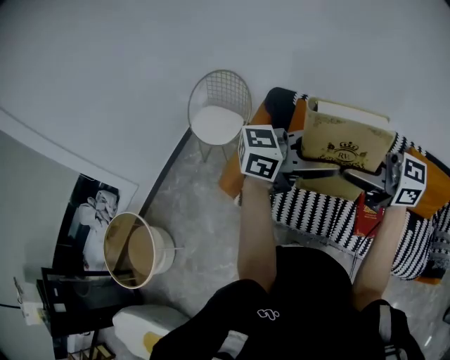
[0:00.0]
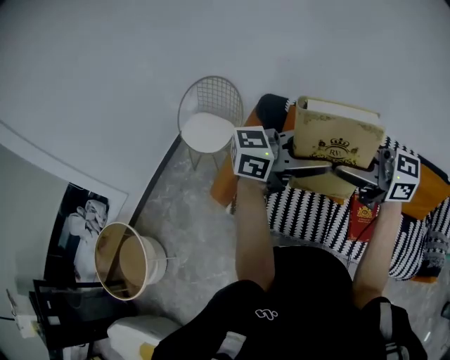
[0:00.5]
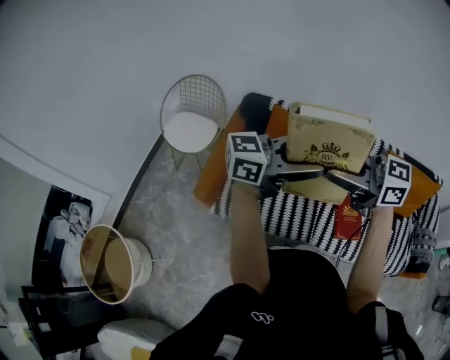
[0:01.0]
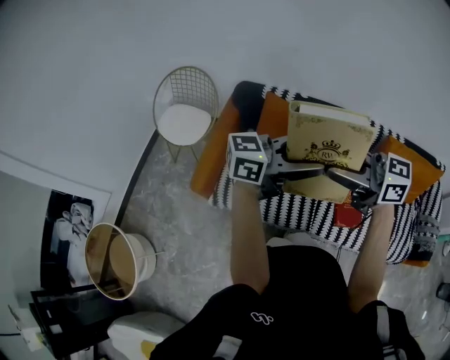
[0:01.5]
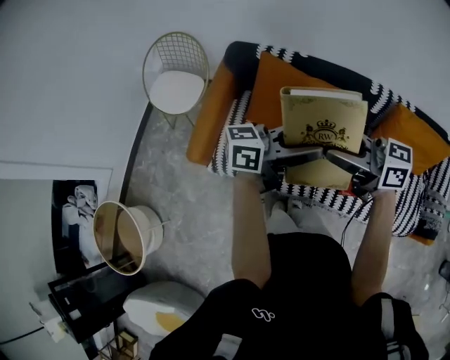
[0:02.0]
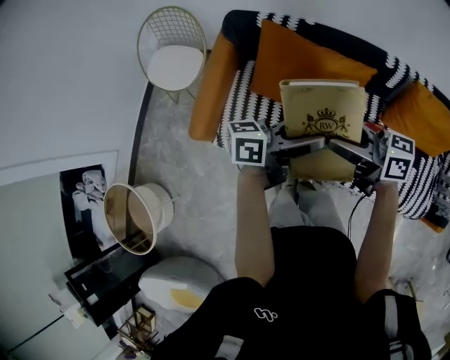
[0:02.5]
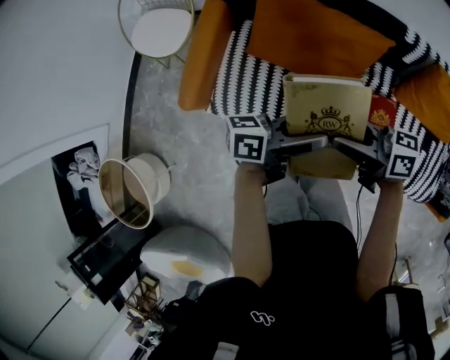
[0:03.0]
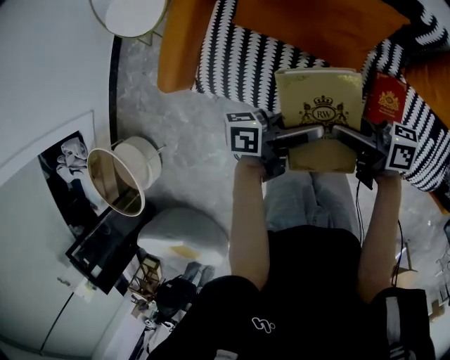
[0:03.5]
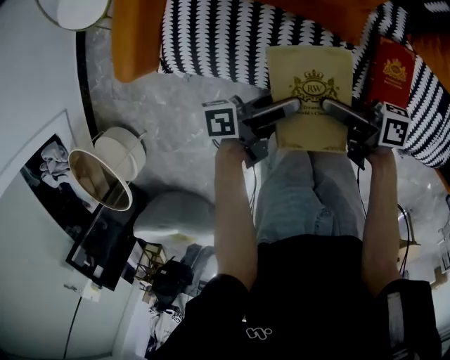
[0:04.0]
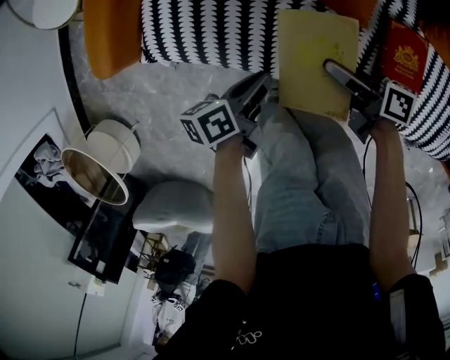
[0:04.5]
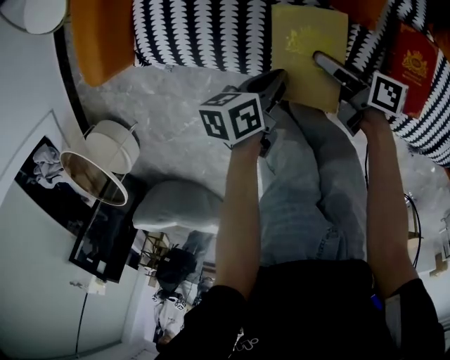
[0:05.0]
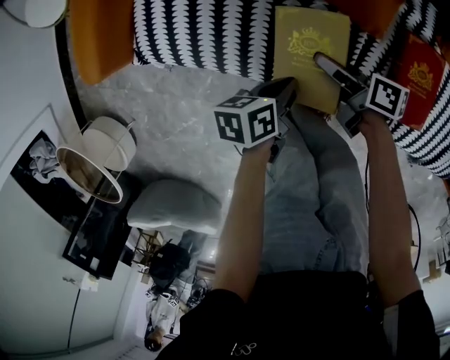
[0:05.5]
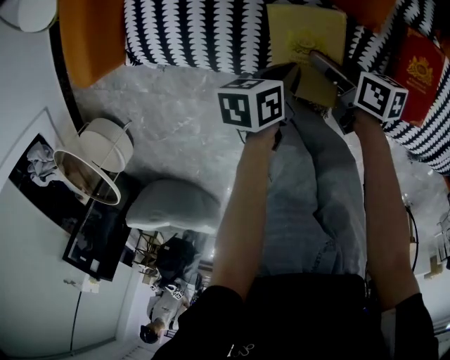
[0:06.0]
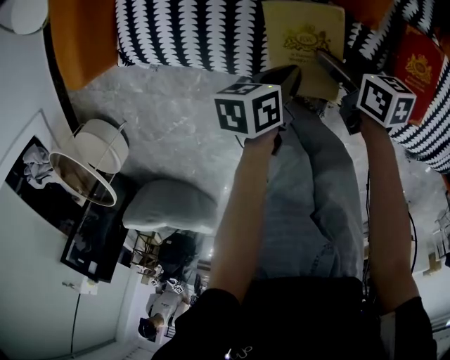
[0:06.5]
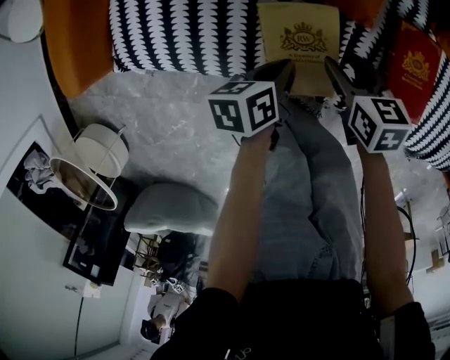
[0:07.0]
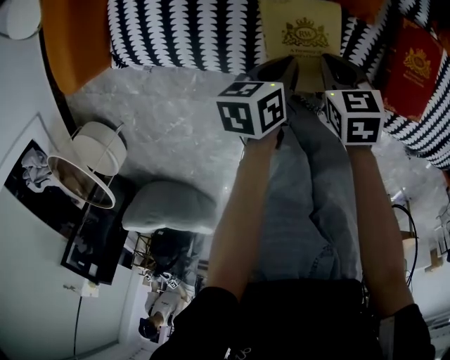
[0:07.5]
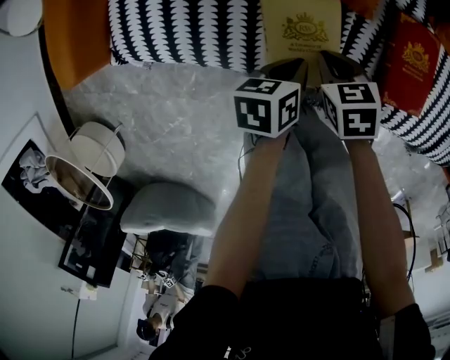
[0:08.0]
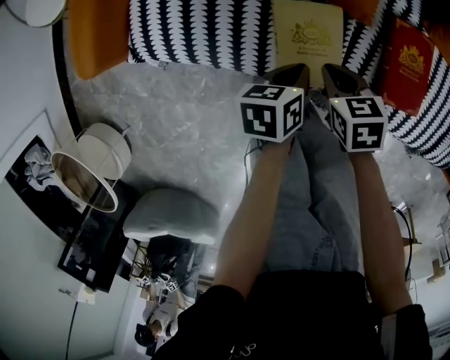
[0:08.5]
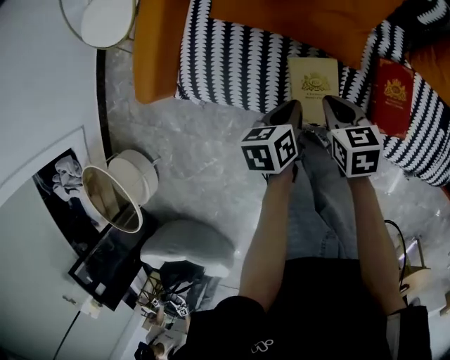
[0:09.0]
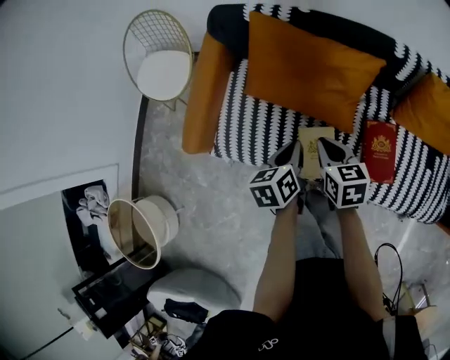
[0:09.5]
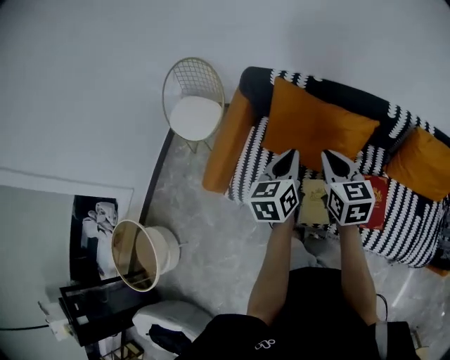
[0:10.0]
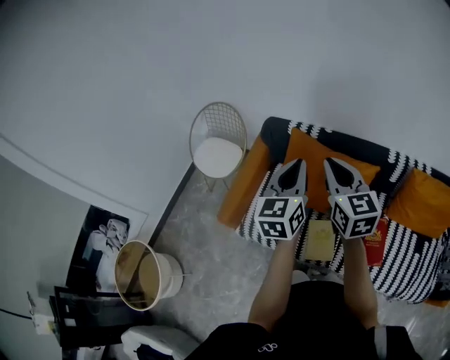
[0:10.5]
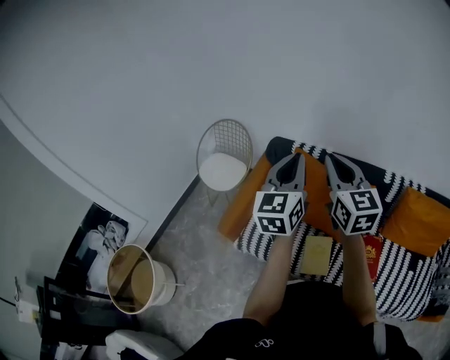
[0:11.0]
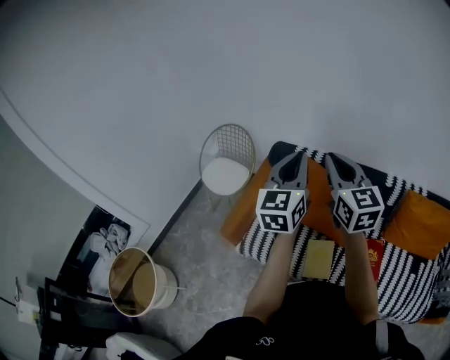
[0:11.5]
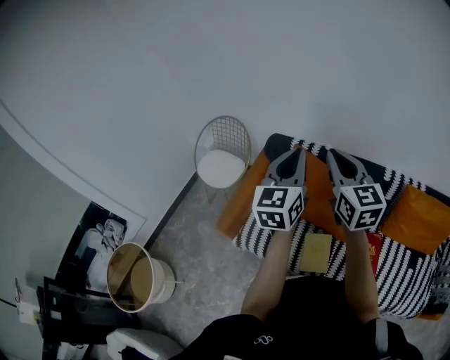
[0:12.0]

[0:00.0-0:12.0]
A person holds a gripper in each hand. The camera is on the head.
0:00.0 to 0:02.0: The two grippers go some 15 cm downward. The right gripper turns by some 20 degrees. The left gripper rotates roughly 30 degrees.
0:02.0 to 0:04.0: The grippers both shift downward by approximately 35 cm. The right gripper rolls clockwise, seen from behind, by approximately 50 degrees. Meanwhile the left gripper twists roughly 50 degrees counterclockwise, seen from behind.
0:04.0 to 0:06.0: The grippers both shift downward by about 20 cm. The left gripper angles its fingers downward, by roughly 40 degrees, and closes; the right gripper swivels some 30 degrees.
0:06.0 to 0:08.0: The right gripper swivels approximately 50 degrees, and closes up.
0:08.0 to 0:10.0: The grippers both shift upward by about 50 cm. The left gripper turns by approximately 40 degrees, while the right gripper angles its fingers upward, by some 40 degrees.
0:10.0 to 0:12.0: The grippers both shift upward by about 25 cm. The left gripper changes its angle by approximately 30 degrees. The right gripper swivels approximately 30 degrees.

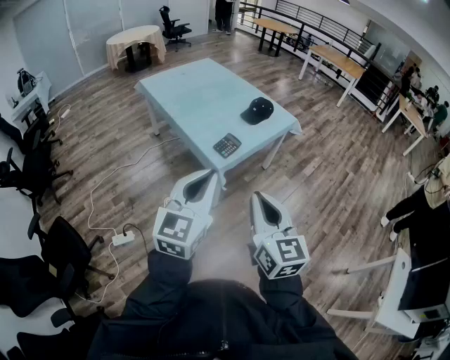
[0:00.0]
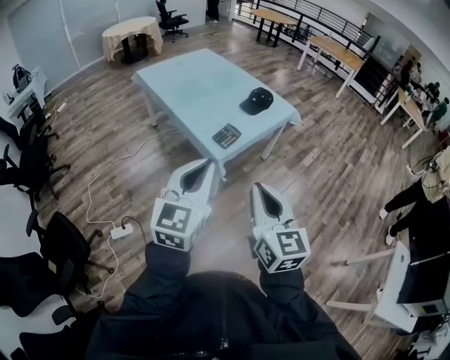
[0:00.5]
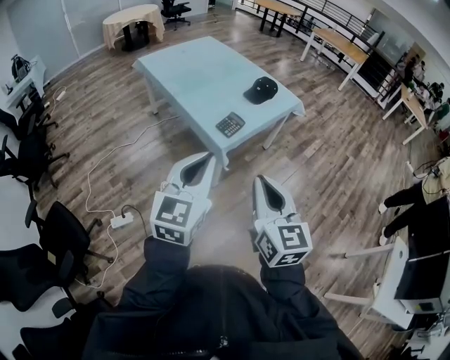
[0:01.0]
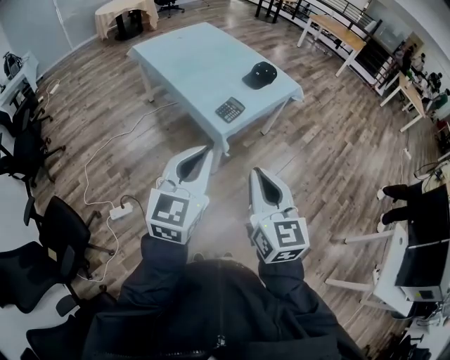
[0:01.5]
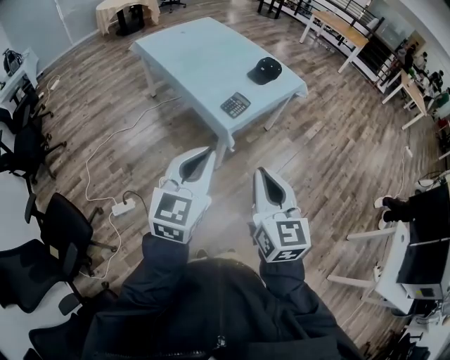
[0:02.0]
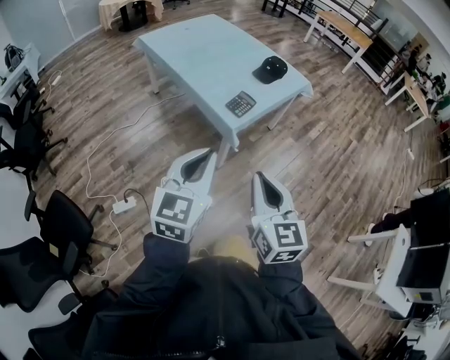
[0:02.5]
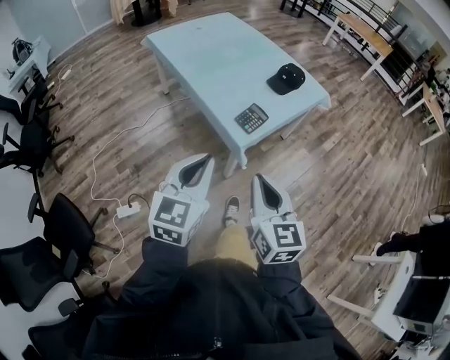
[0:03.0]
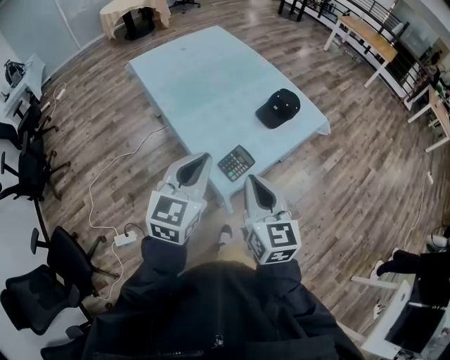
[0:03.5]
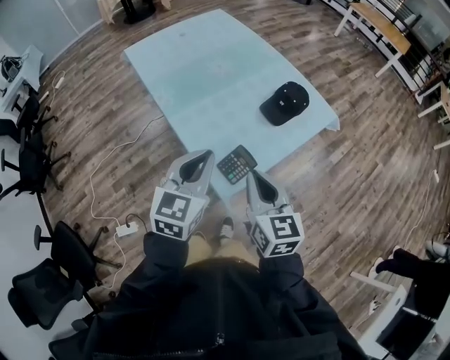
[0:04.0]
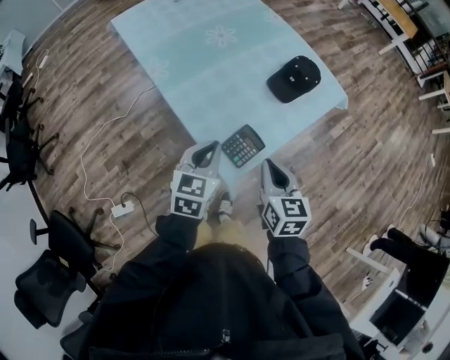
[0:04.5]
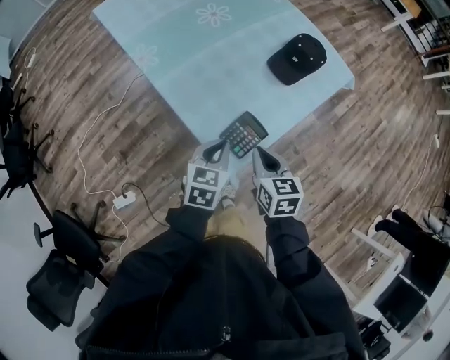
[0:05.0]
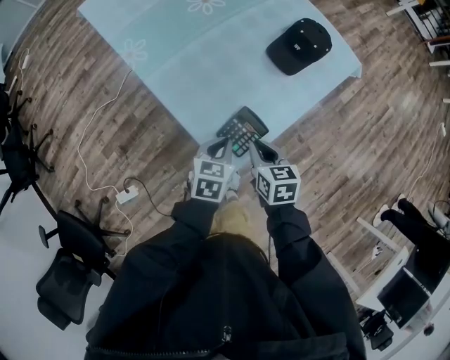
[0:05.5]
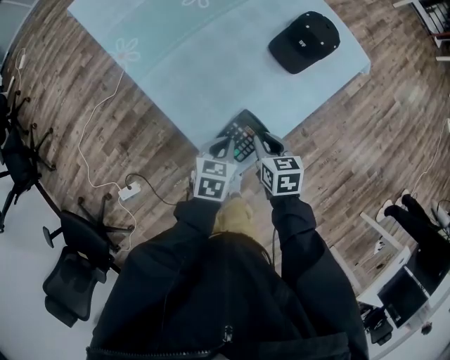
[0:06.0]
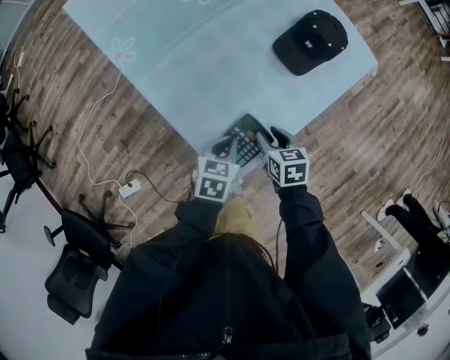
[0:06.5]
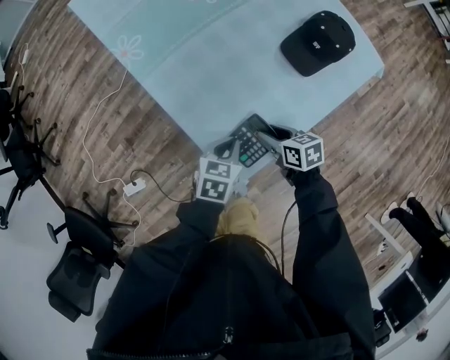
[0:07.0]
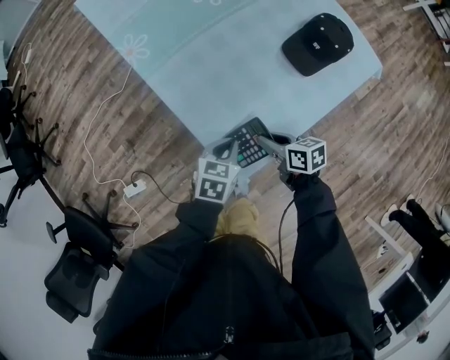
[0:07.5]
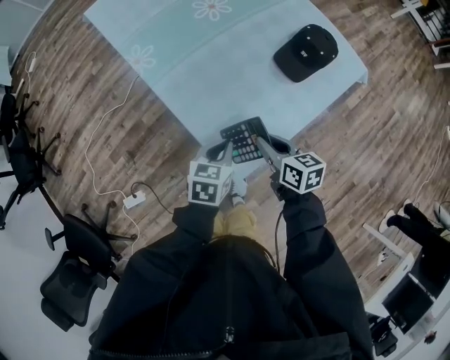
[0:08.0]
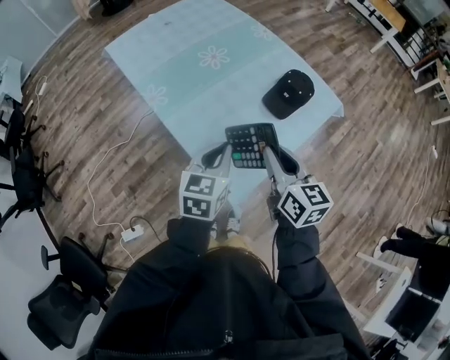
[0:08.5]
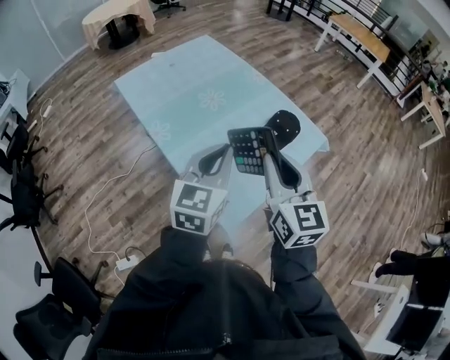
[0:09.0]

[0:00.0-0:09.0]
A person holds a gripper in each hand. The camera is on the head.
0:00.0 to 0:02.0: Both grippers move to the left, some 5 cm.
0:02.0 to 0:04.5: The pair of grippers is taken forward, roughly 50 cm. Both grippers move downward, about 20 cm. The right gripper changes its angle by roughly 20 degrees, while the left gripper changes its angle by roughly 30 degrees.
0:04.5 to 0:07.0: The two grippers go approximately 25 cm downward. The left gripper turns by roughly 30 degrees; the right gripper rotates roughly 40 degrees, and opens.
0:07.0 to 0:09.0: The grippers both shift upward by about 40 cm. The left gripper tips its fingers upward by some 40 degrees. Meanwhile the right gripper tips its fingers upward by about 40 degrees, and closes up.

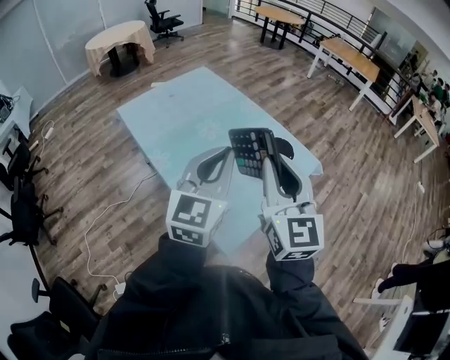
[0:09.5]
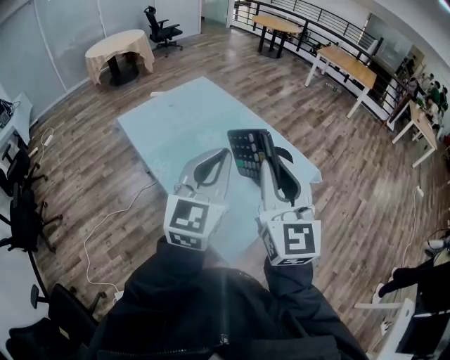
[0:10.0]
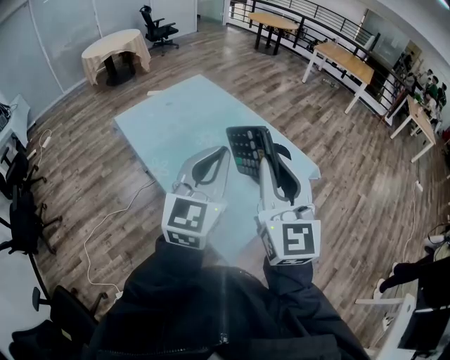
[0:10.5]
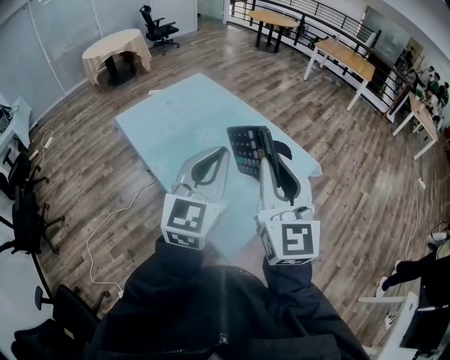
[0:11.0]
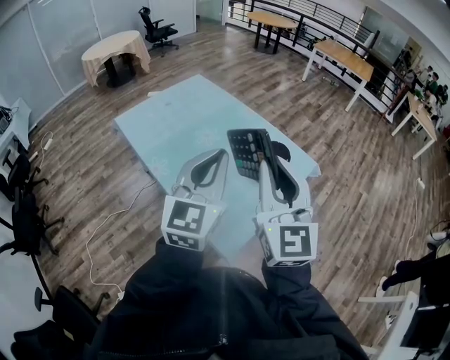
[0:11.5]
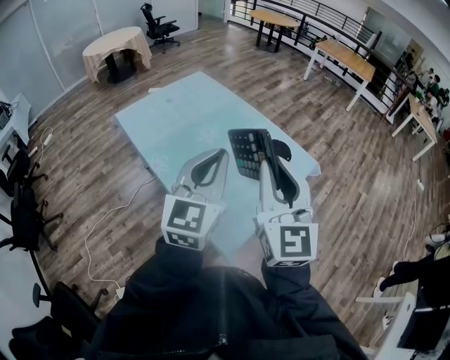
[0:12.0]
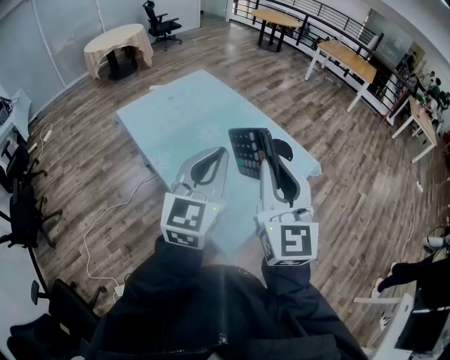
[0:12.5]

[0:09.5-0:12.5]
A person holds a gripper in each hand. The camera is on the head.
0:09.5 to 0:12.5: The grippers stay close to where they were, moving slightly.

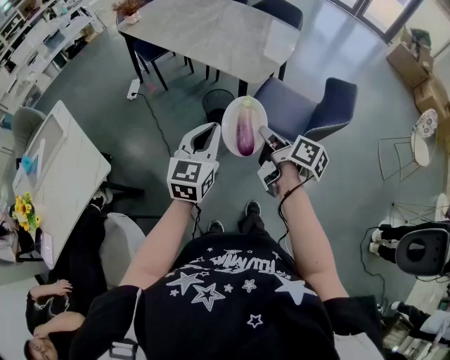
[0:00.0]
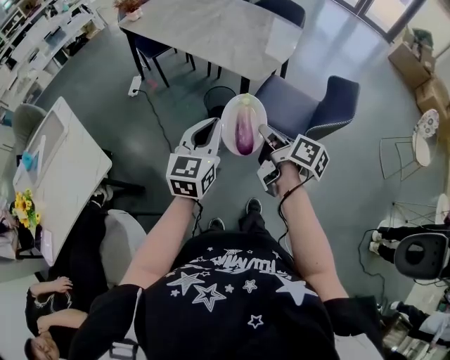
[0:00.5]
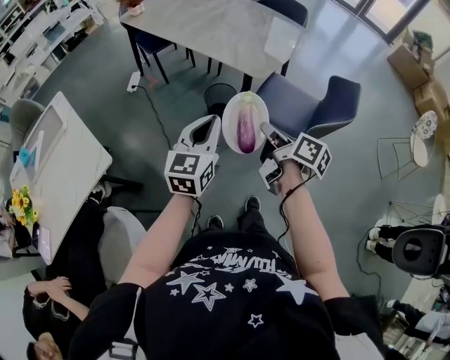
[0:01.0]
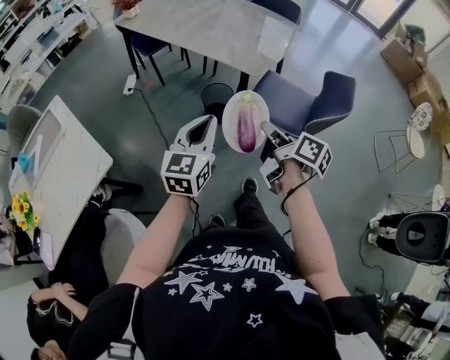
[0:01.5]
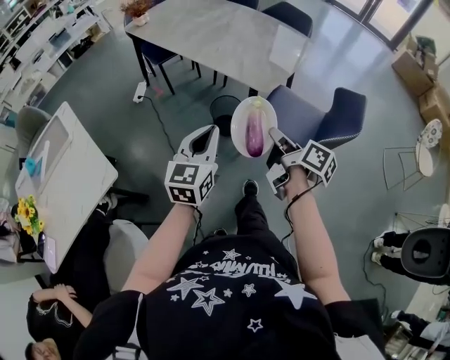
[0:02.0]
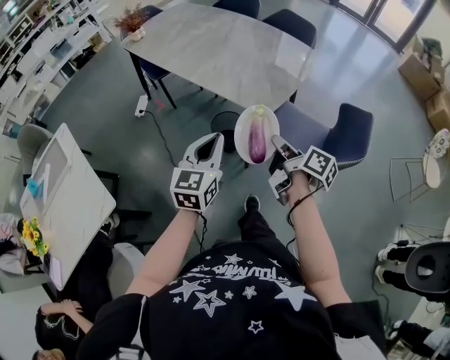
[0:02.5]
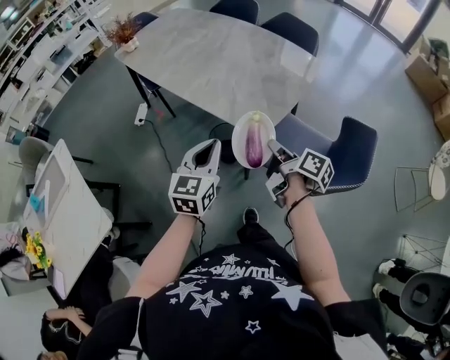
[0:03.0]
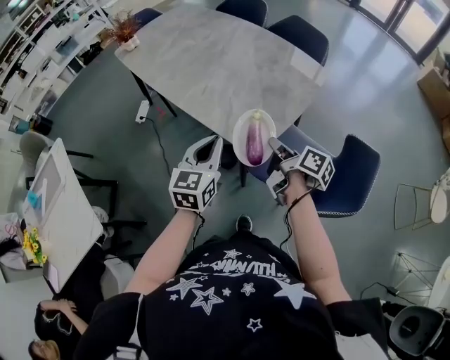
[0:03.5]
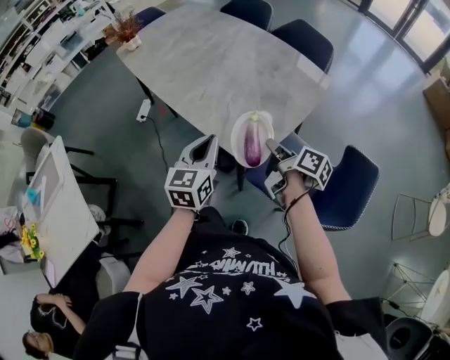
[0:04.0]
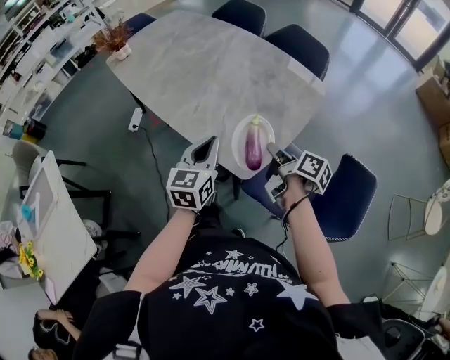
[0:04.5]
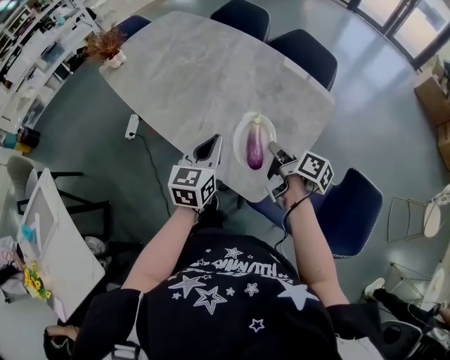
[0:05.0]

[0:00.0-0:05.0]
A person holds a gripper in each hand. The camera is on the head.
0:00.0 to 0:02.5: The grippers both shift backward and to the left by about 20 cm.
0:02.5 to 0:05.0: The grippers both shift forward by about 30 cm.
